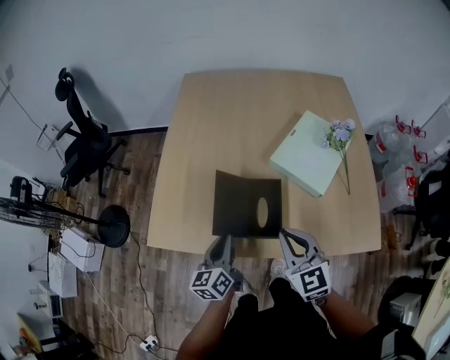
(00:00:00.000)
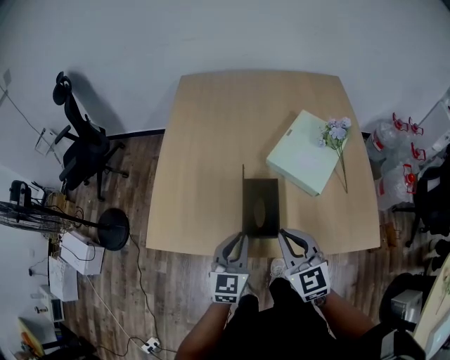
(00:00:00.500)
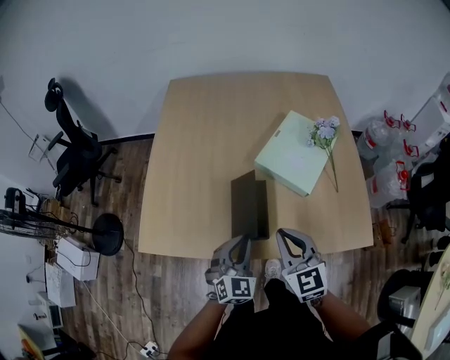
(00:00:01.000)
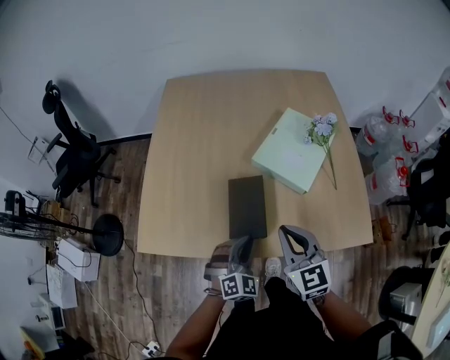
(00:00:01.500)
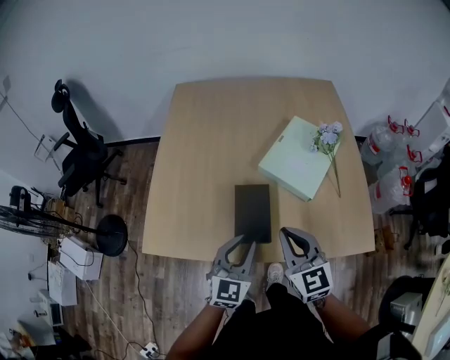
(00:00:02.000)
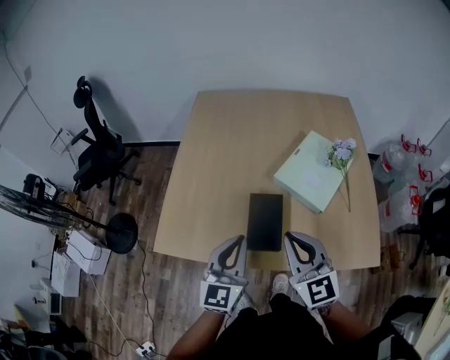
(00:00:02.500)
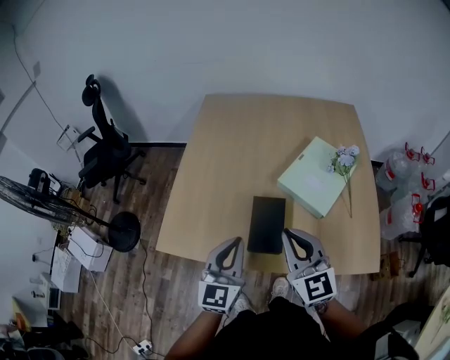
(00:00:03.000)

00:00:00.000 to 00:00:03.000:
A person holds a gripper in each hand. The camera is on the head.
00:00:00.000 to 00:00:01.500: The left gripper is displaced to the right by approximately 15 cm, and twists some 80 degrees clockwise, seen from behind.
00:00:01.500 to 00:00:03.000: The right gripper heads upward, covering approximately 10 cm. The left gripper is displaced upward and to the left by approximately 20 cm, and rolls counterclockwise, seen from behind, by approximately 40 degrees.

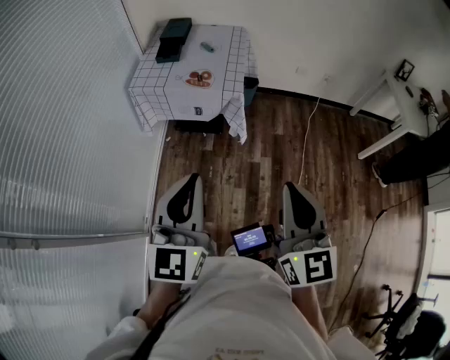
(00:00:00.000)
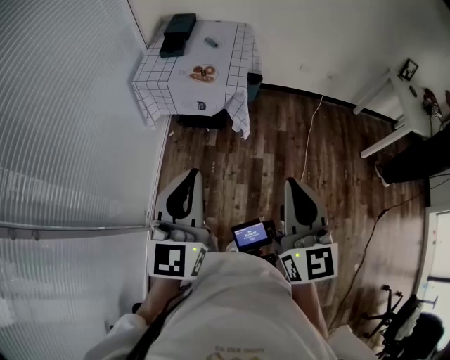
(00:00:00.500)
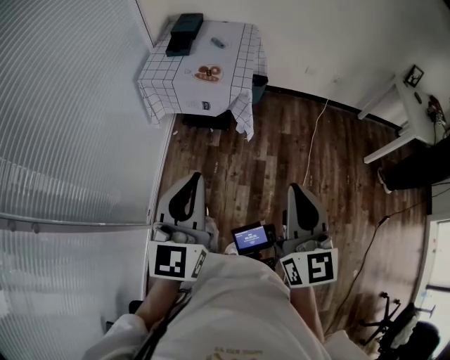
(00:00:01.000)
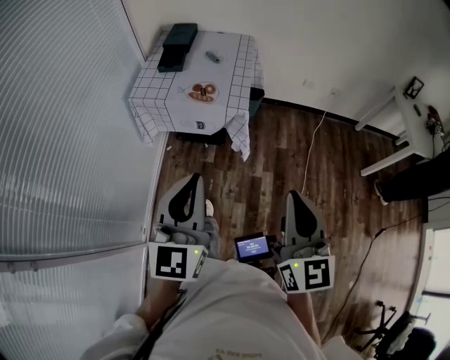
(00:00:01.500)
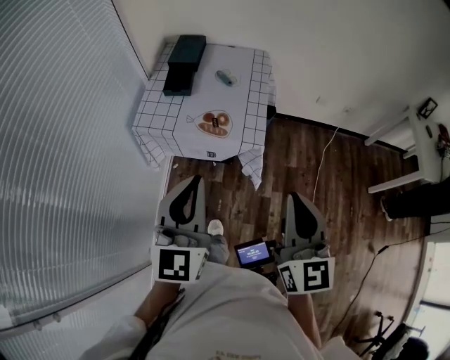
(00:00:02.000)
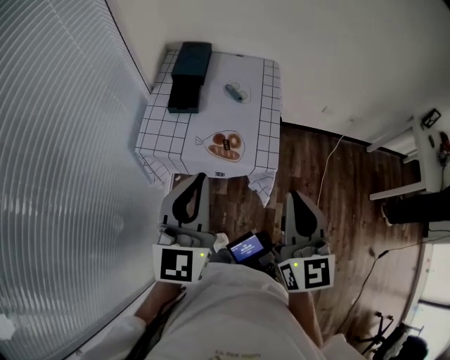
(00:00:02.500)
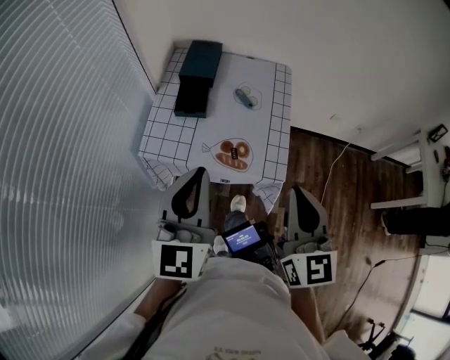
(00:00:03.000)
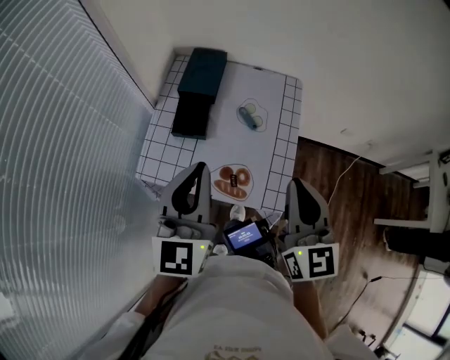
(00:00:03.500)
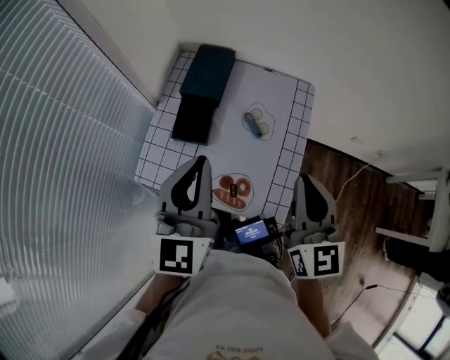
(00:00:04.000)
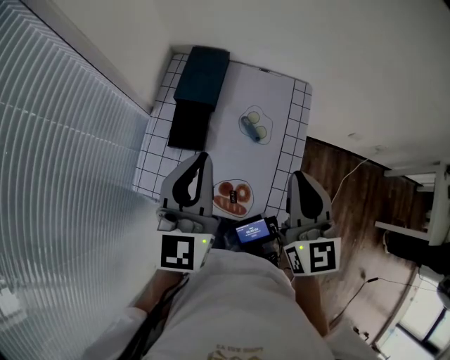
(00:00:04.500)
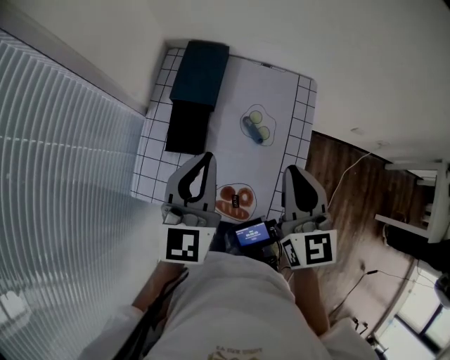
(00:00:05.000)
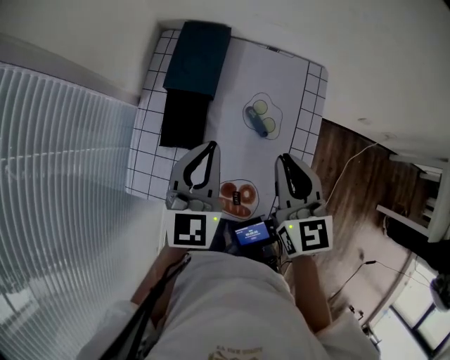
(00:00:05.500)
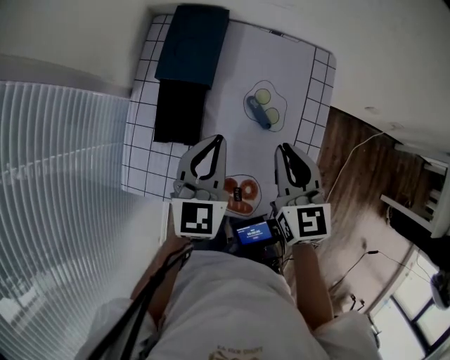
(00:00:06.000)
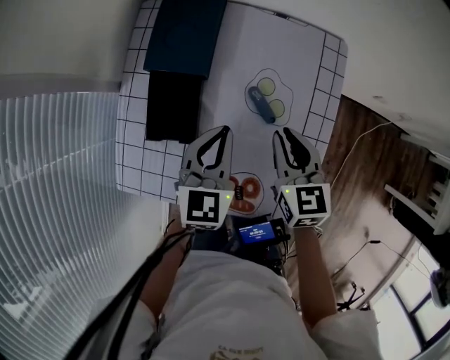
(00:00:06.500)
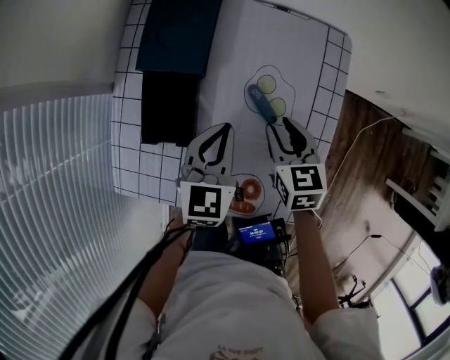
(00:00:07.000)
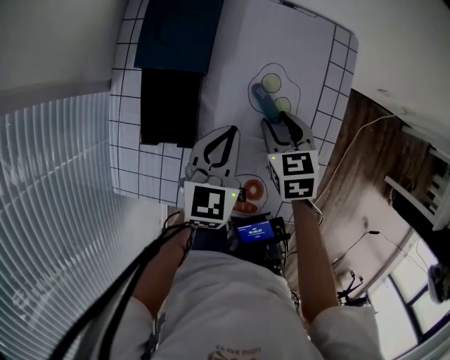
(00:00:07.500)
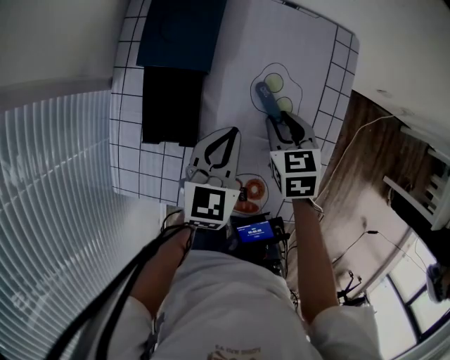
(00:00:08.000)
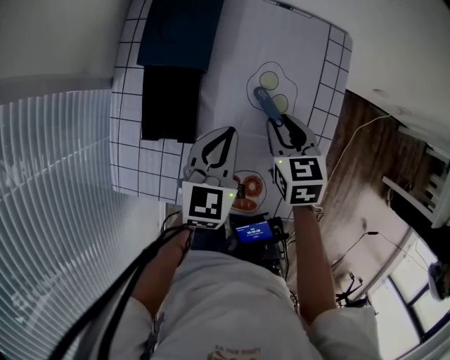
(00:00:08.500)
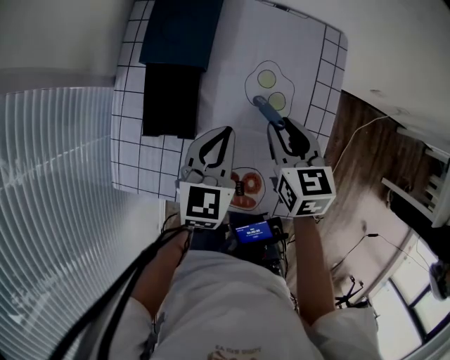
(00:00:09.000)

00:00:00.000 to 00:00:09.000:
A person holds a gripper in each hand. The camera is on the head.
00:00:00.000 to 00:00:02.000: The grippers both shift forward by approximately 25 cm.
00:00:02.000 to 00:00:04.500: The two grippers travel together, forward, approximately 40 cm.
00:00:04.500 to 00:00:07.000: The grippers both shift downward and forward by roughly 30 cm. The left gripper swivels some 30 degrees. Meanwhile the right gripper tips its fingers downward by roughly 30 degrees, and opens up.
00:00:07.000 to 00:00:09.000: The grippers make only small movements.

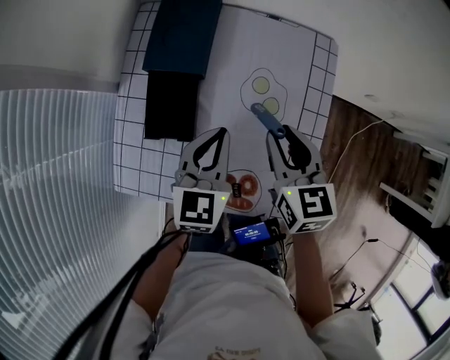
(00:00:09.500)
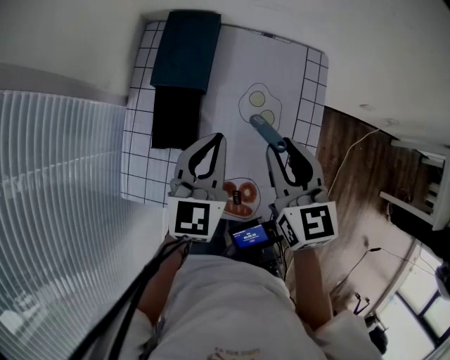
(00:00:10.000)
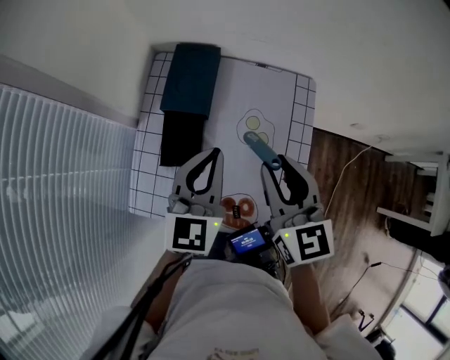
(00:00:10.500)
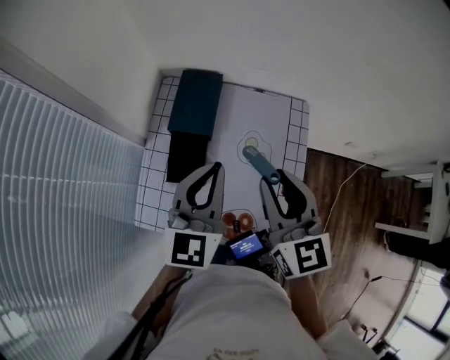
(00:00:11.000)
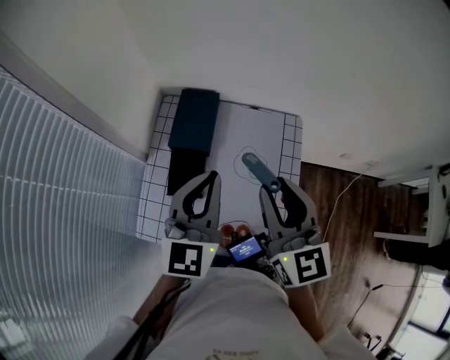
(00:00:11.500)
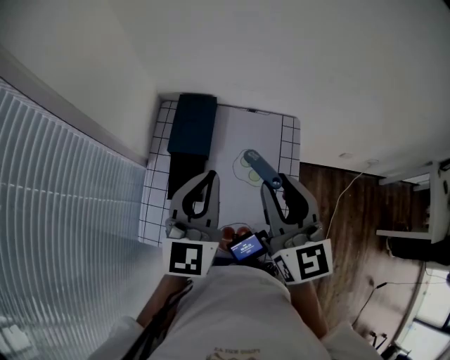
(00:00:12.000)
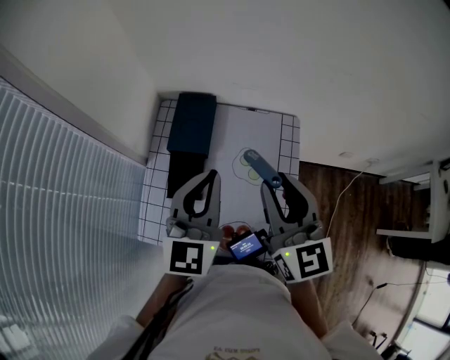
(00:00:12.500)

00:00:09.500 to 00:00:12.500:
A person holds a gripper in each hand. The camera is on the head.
00:00:09.500 to 00:00:11.000: Both grippers move upward, roughly 20 cm. The right gripper swivels about 20 degrees.
00:00:11.000 to 00:00:12.500: The right gripper ends up some 5 cm from where it was.

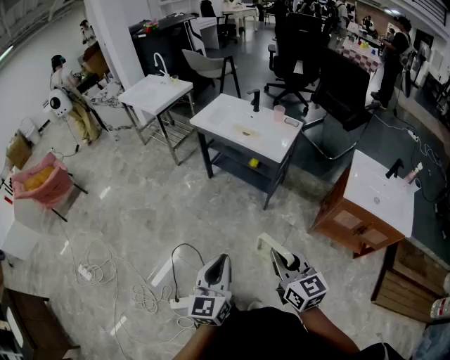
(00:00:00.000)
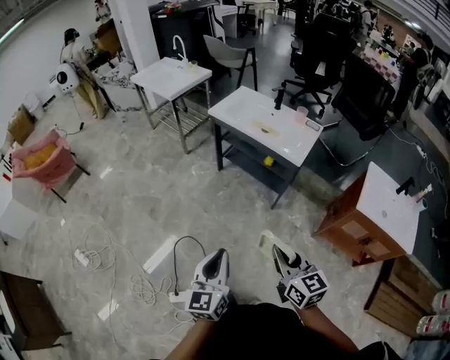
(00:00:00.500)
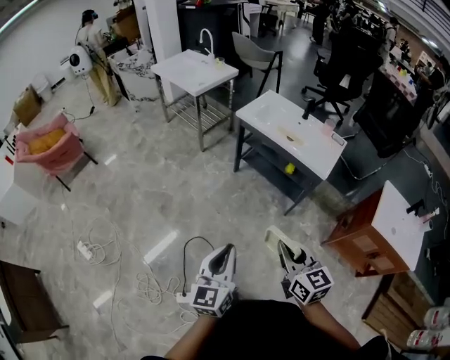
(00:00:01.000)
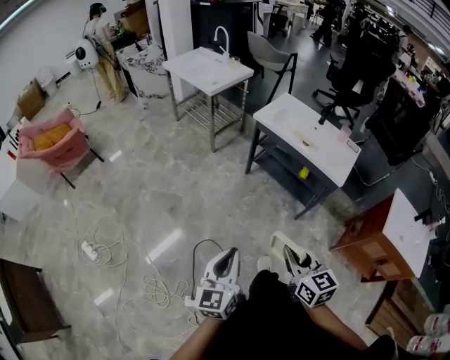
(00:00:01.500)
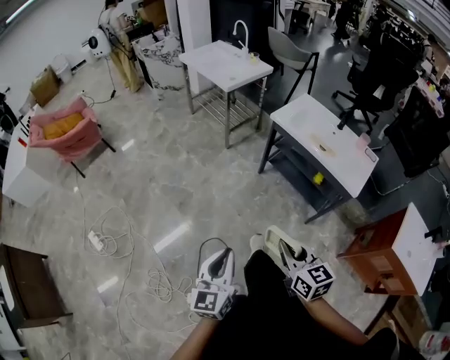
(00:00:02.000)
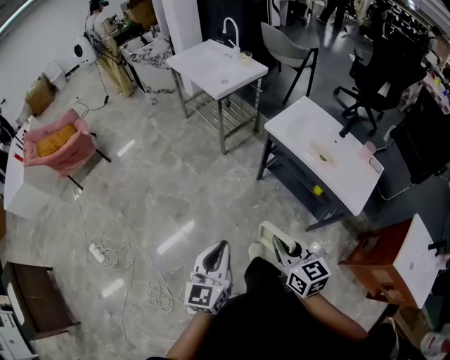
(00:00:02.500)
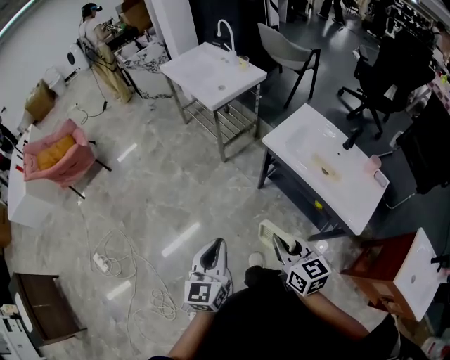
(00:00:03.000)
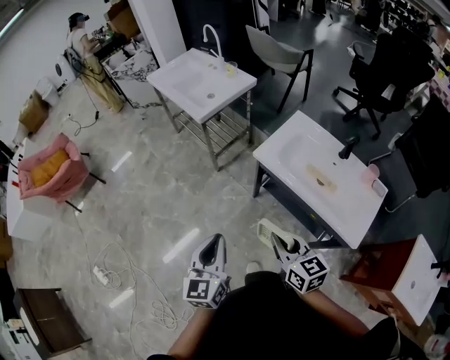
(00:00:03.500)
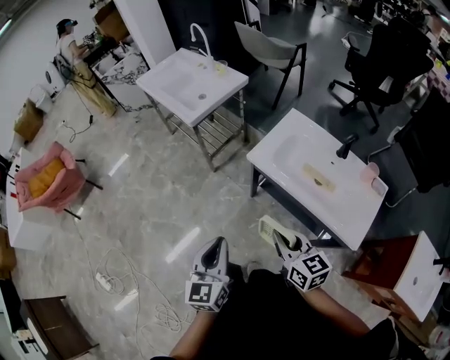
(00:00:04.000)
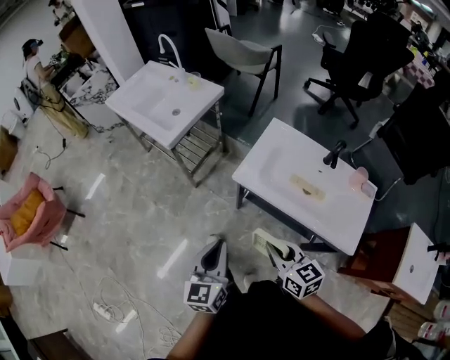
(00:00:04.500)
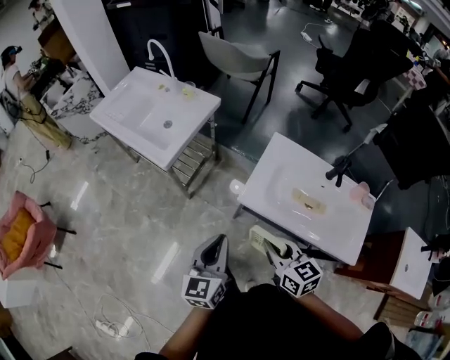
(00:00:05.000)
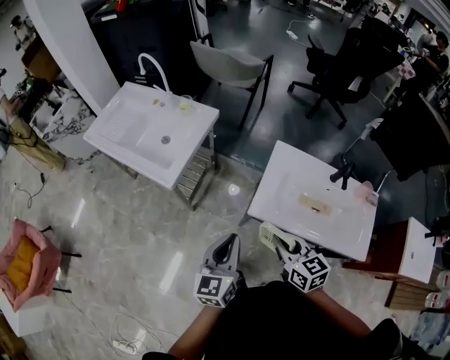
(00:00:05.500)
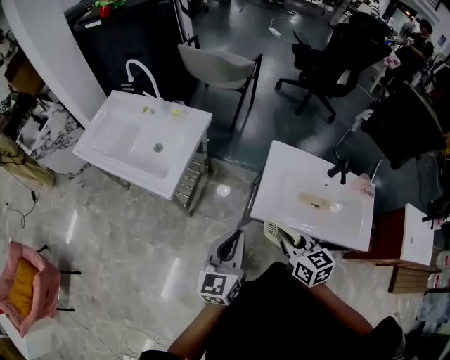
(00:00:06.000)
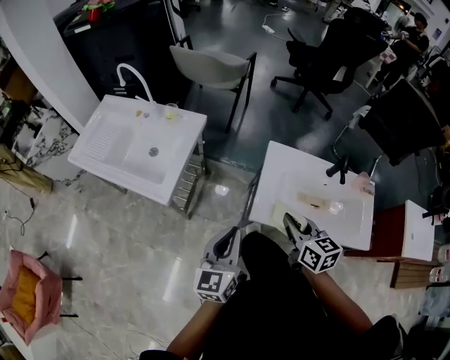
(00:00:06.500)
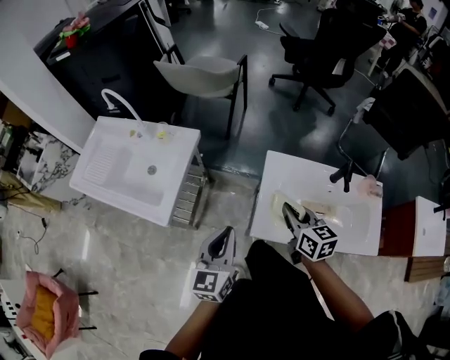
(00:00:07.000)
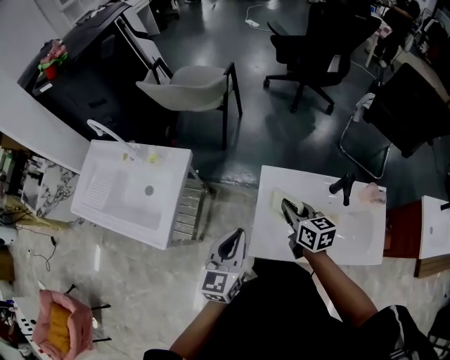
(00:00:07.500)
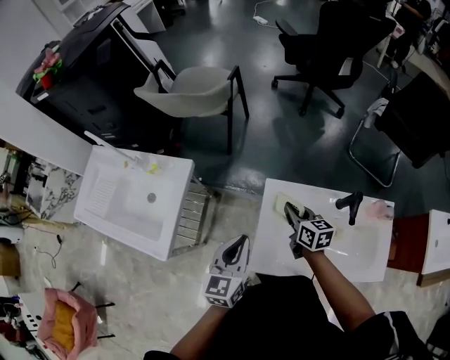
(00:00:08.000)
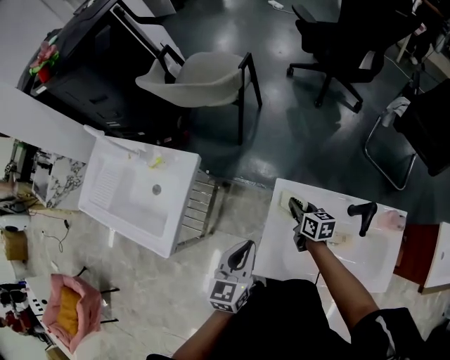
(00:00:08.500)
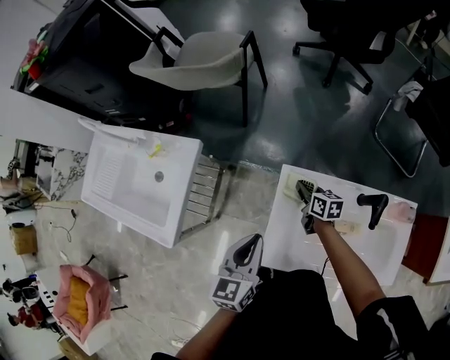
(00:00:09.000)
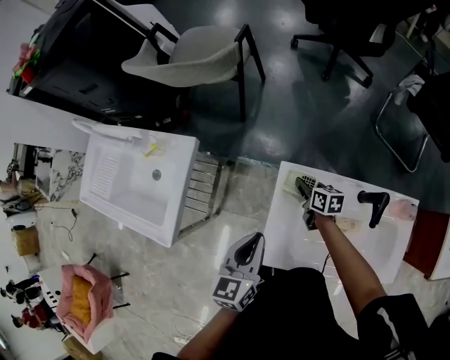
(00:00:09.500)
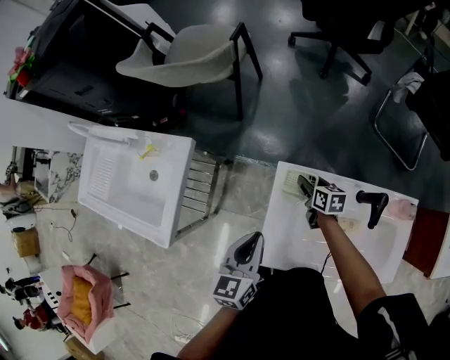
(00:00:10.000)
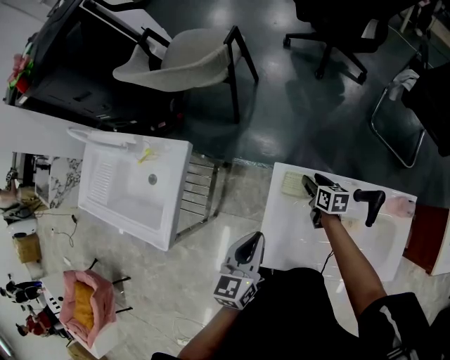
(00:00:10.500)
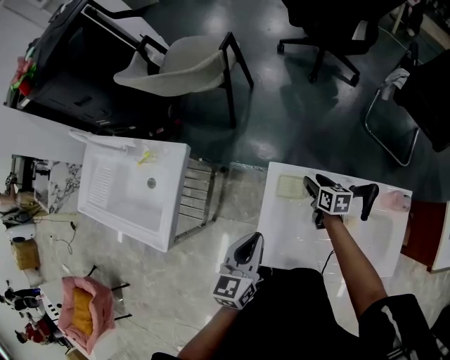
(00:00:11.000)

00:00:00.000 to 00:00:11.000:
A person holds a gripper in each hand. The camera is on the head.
00:00:00.000 to 00:00:02.000: The two grippers go about 40 cm to the left and forward.
00:00:02.000 to 00:00:03.500: The two grippers go some 40 cm forward and to the right.
00:00:03.500 to 00:00:05.500: The right gripper changes place by about 30 cm, and changes its angle by about 20 degrees, while the left gripper ends up some 35 cm from where it was, and rotates roughly 30 degrees.
00:00:05.500 to 00:00:07.500: The grippers both shift forward by approximately 25 cm. The right gripper rotates approximately 20 degrees.
00:00:07.500 to 00:00:09.000: The left gripper heads forward and downward, covering roughly 10 cm. The right gripper goes about 25 cm downward and forward, and turns by some 20 degrees.
00:00:09.000 to 00:00:11.000: The right gripper heads to the right, covering about 10 cm, and opens its fingers.
